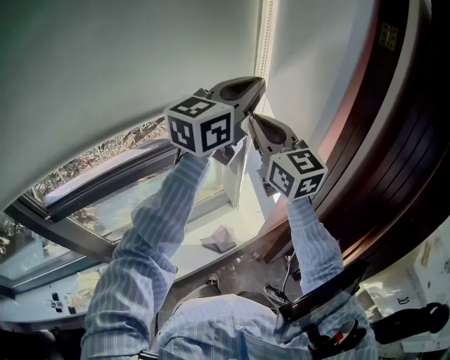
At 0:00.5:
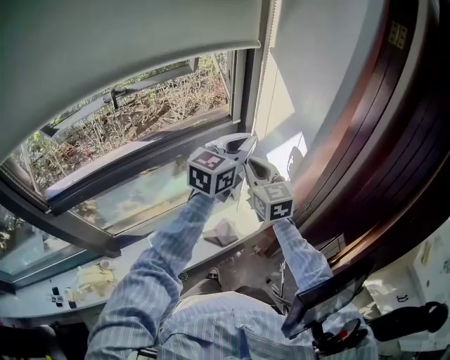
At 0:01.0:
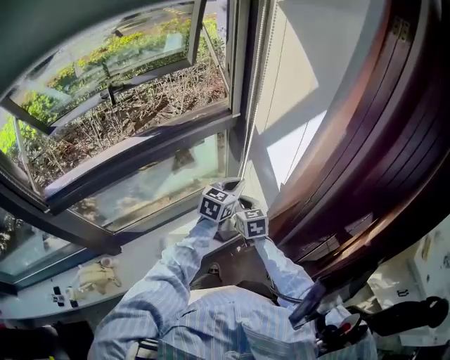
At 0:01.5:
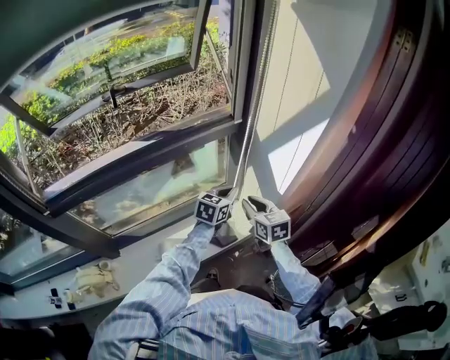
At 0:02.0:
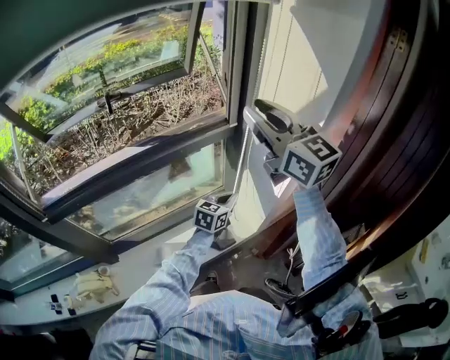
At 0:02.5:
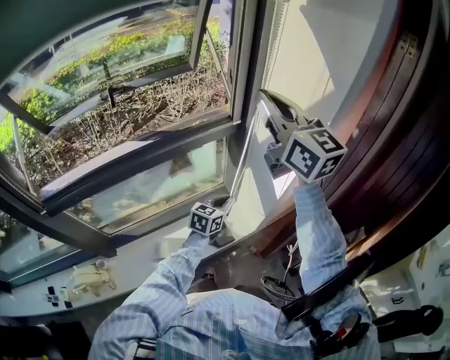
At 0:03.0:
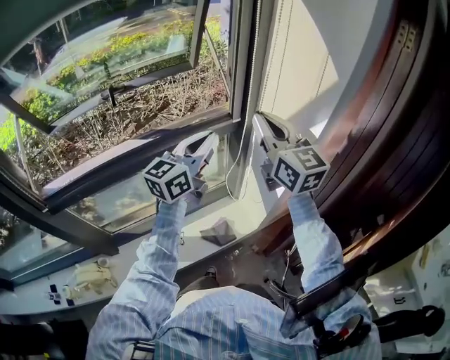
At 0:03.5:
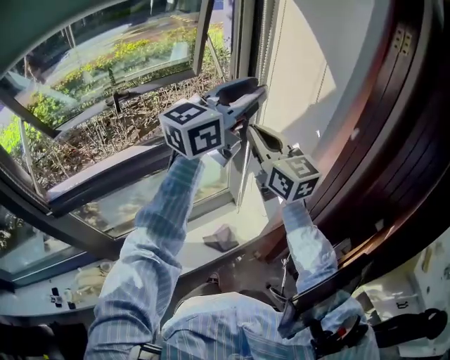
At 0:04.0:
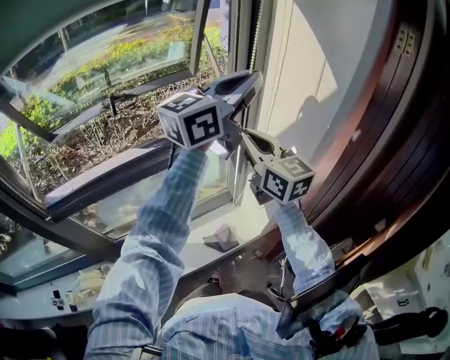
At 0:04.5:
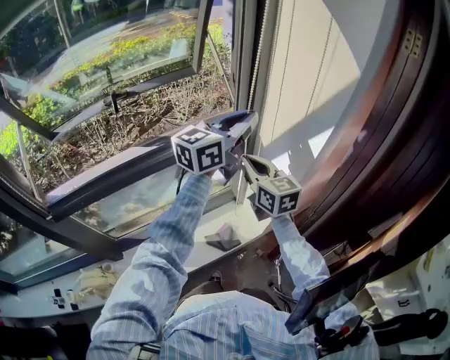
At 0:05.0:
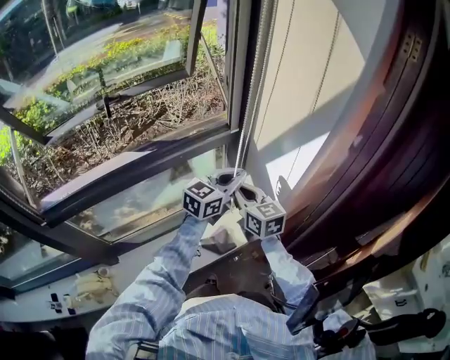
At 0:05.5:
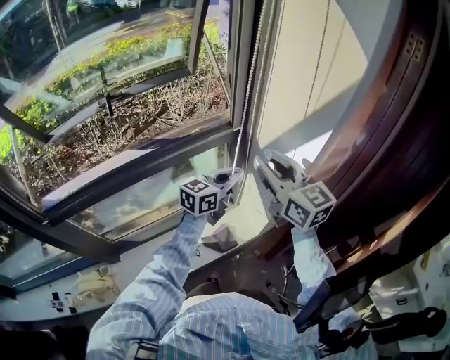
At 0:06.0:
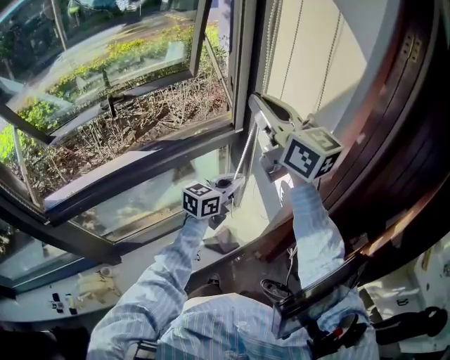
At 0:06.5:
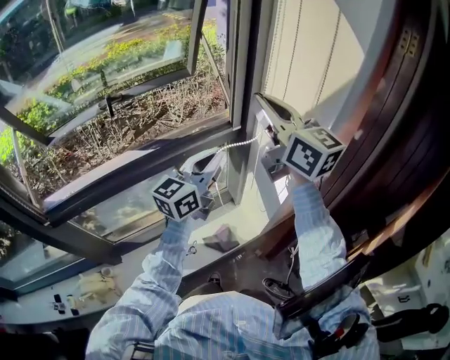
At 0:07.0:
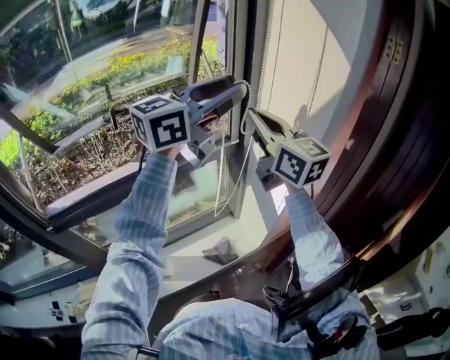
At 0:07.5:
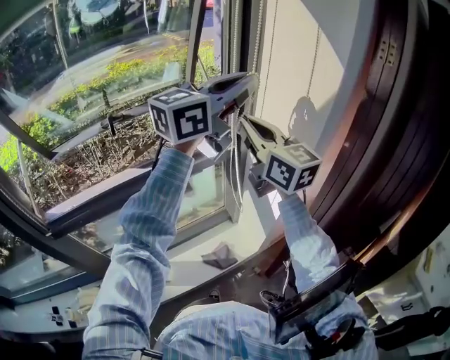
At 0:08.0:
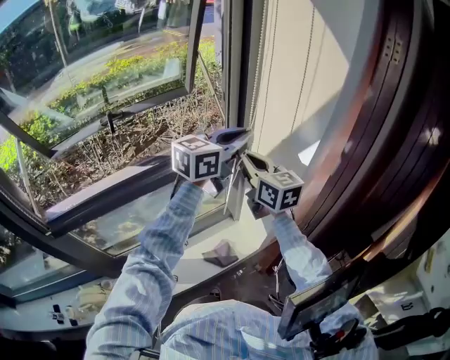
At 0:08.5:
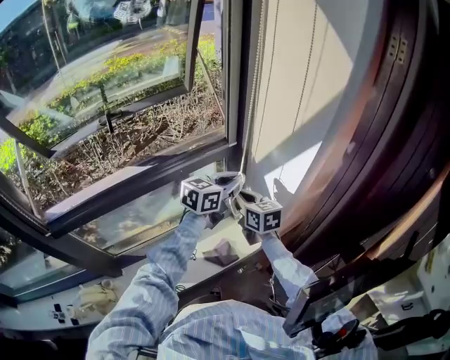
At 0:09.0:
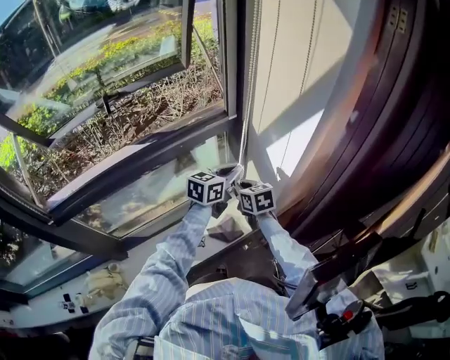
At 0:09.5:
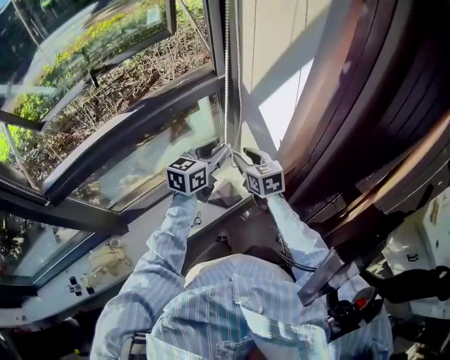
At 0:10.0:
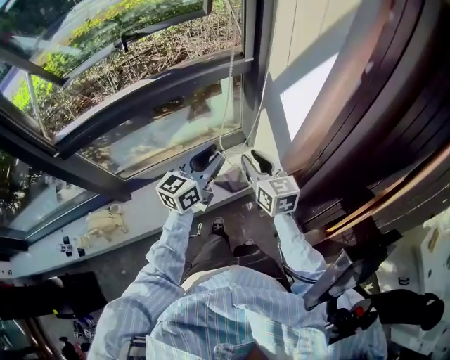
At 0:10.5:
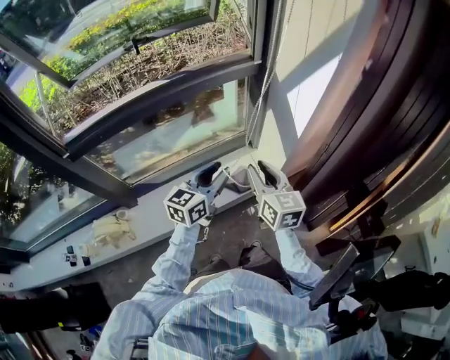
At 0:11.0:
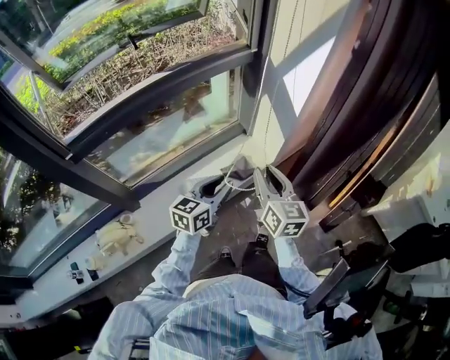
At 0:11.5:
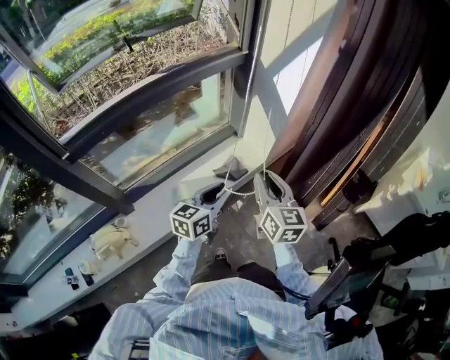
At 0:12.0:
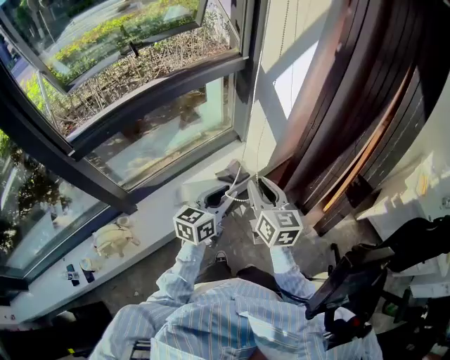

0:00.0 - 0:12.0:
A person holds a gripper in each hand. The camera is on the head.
0:00.0 - 0:02.0: The right gripper goes downward and returns, some 40 cm each way, and opens. The left gripper heads downward, covering roughly 50 cm, and tilts its fingers about 30 degrees downward.
0:02.0 - 0:04.0: The right gripper is displaced downward by approximately 5 cm, and closes its fingers; the left gripper goes roughly 50 cm upward, tips its fingers upward by about 40 degrees, and opens, then closes once more.
0:04.0 - 0:06.0: The right gripper moves about 20 cm downward and comes back, and opens, then closes again; the left gripper travels downward by some 35 cm, and rotates roughly 30 degrees.
0:06.0 - 0:08.0: The right gripper travels downward by roughly 15 cm. The left gripper goes some 20 cm upward, and opens and closes again.
0:08.0 - 0:10.0: Both grippers move downward and backward, some 30 cm. The right gripper opens up. The left gripper changes its angle by roughly 20 degrees, and opens its fingers.
0:10.0 - 0:12.0: Both grippers move backward, roughly 20 cm. The right gripper swivels about 20 degrees.

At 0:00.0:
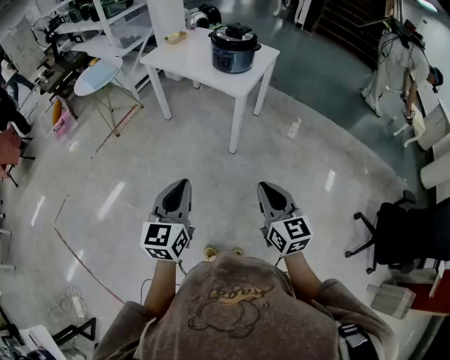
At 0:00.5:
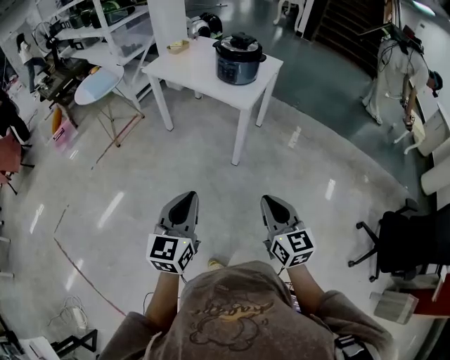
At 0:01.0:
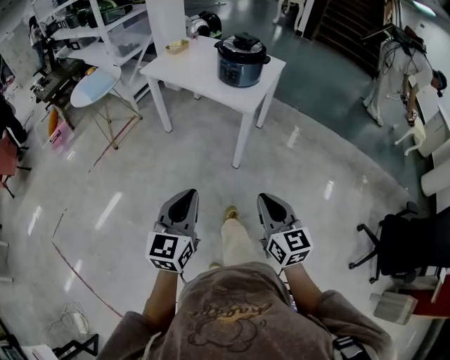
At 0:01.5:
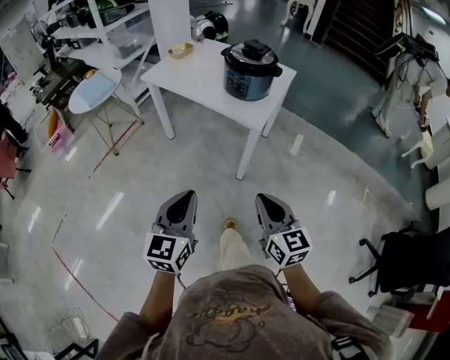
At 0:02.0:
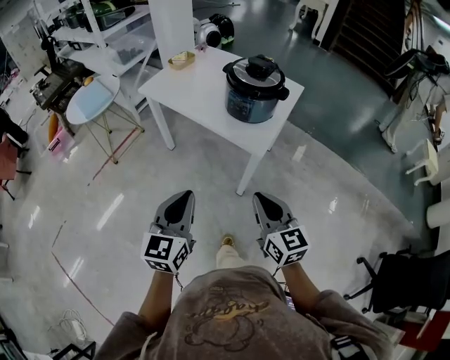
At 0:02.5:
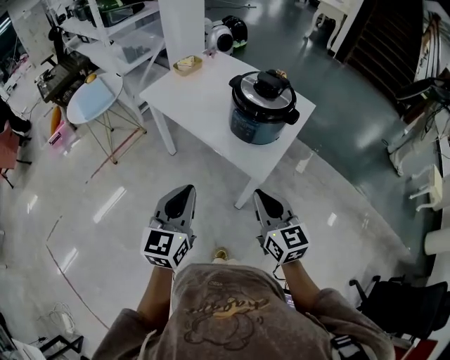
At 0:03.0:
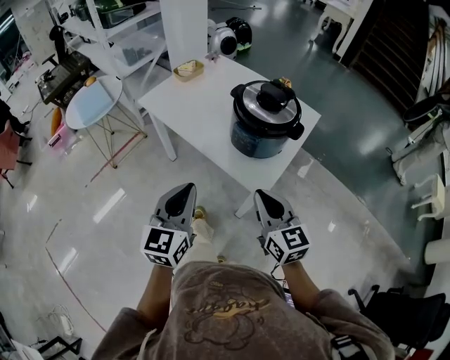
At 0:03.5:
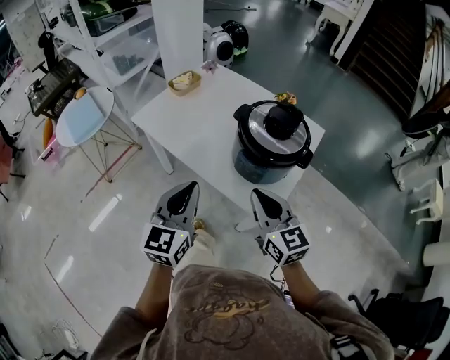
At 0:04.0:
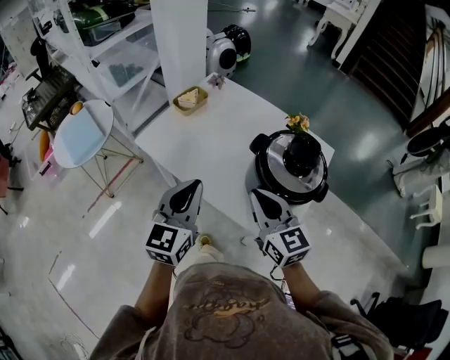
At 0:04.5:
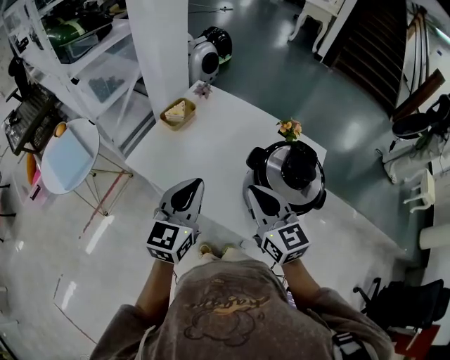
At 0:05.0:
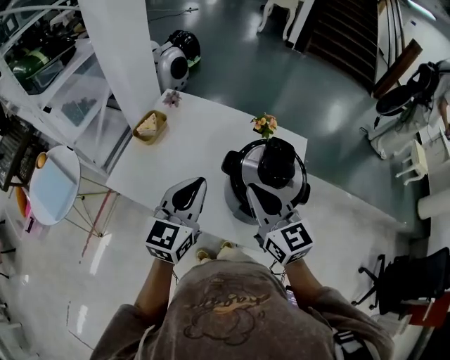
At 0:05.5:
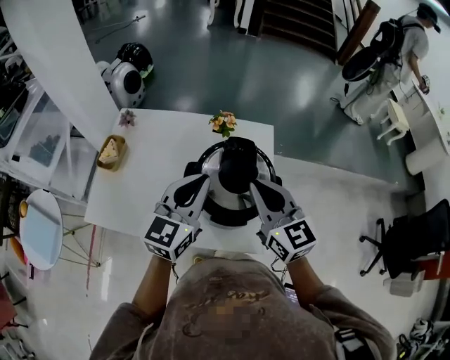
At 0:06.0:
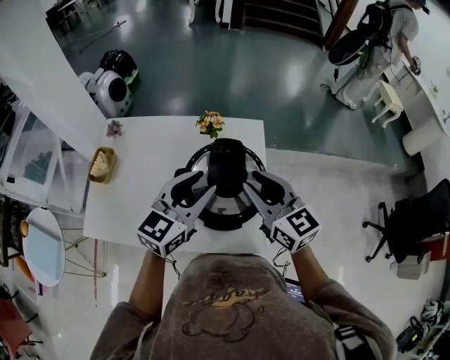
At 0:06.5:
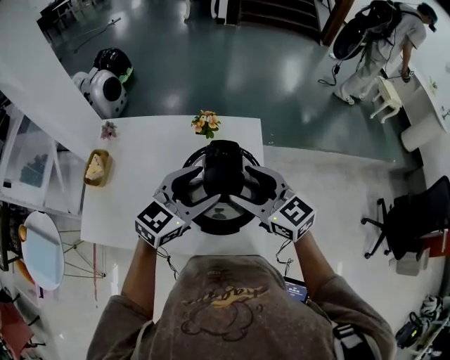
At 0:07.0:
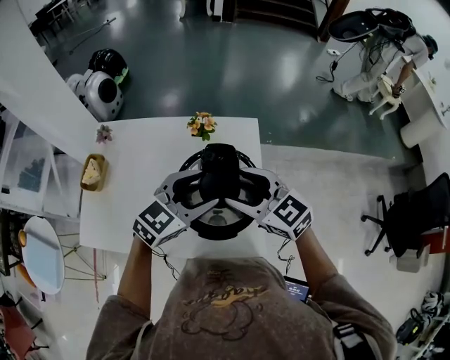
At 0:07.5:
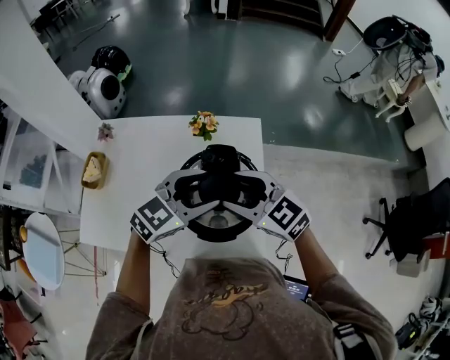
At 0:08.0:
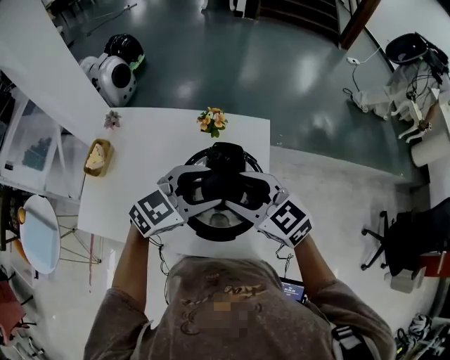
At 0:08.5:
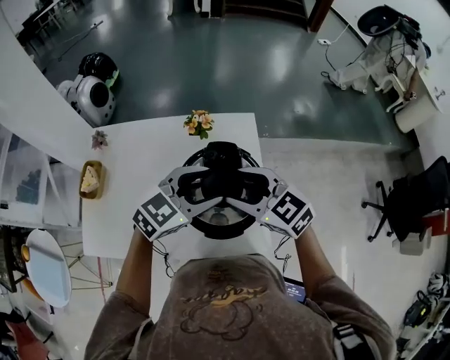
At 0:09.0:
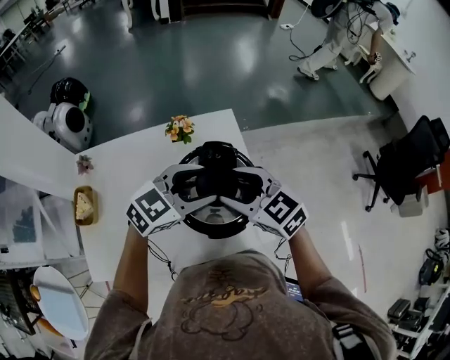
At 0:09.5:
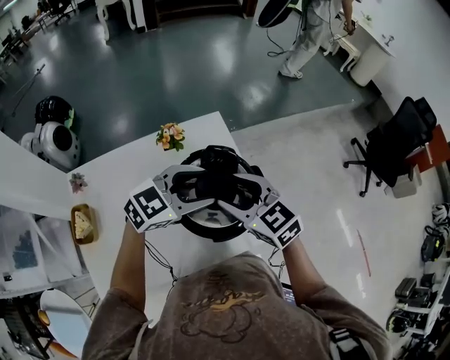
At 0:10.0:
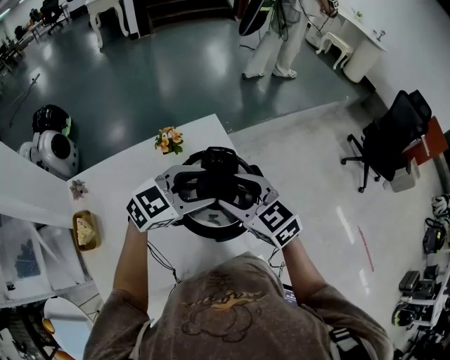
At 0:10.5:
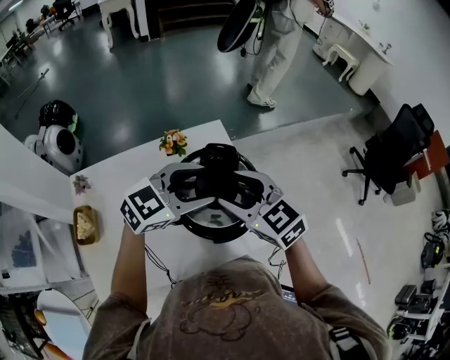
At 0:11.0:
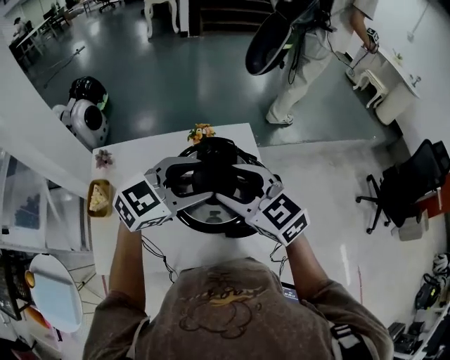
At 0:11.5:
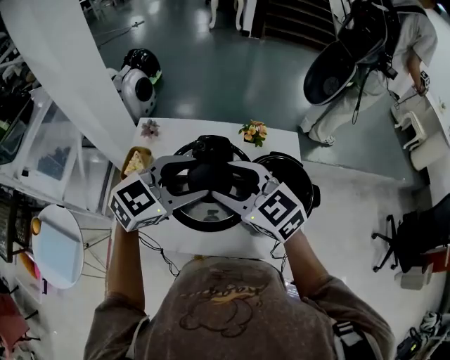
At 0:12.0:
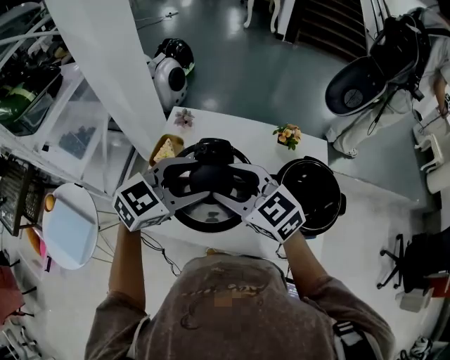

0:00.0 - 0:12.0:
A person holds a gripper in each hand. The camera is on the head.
0:00.0 - 0:02.0: Both grippers move forward, about 30 cm.
0:02.0 - 0:04.0: The pair of grippers is taken forward, roughly 40 cm.
0:04.0 - 0:06.0: The right gripper ends up roughly 20 cm from where it was, turns by about 20 degrees, and opens its fingers. Meanwhile the left gripper shifts by about 25 cm, rotates some 50 degrees, and opens.
0:06.0 - 0:08.0: The left gripper changes place by roughly 5 cm, changes its angle by roughly 30 degrees, and opens; the right gripper ends up approximately 5 cm from where it was, swivels roughly 30 degrees, and opens its fingers.
0:08.0 - 0:10.0: The left gripper swivels approximately 30 degrees. The right gripper rotates roughly 40 degrees.
0:10.0 - 0:12.0: The right gripper changes place by some 30 cm, and turns by roughly 40 degrees. The left gripper moves approximately 30 cm, and changes its angle by approximately 40 degrees.

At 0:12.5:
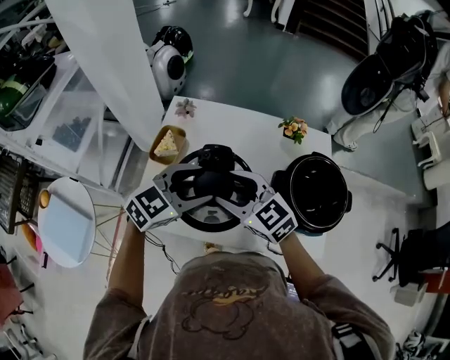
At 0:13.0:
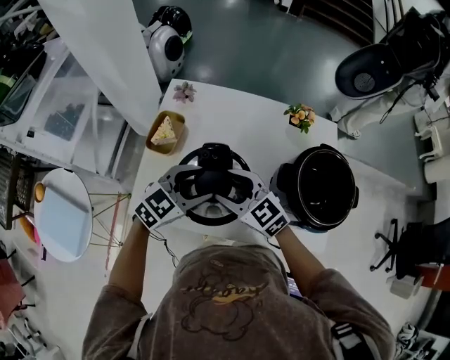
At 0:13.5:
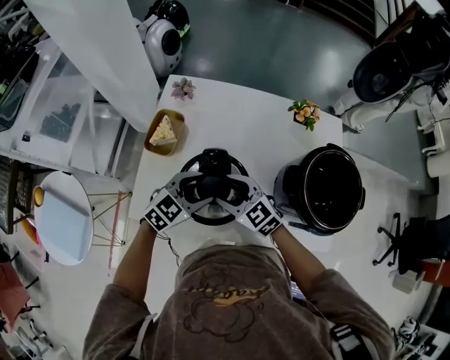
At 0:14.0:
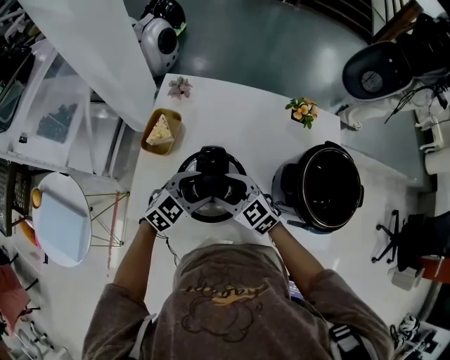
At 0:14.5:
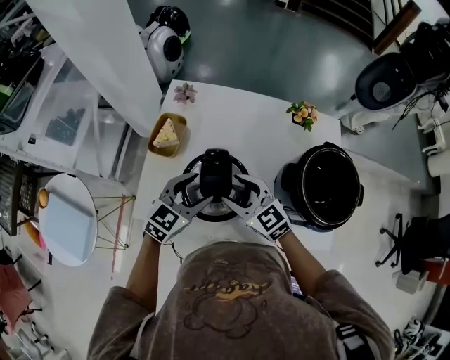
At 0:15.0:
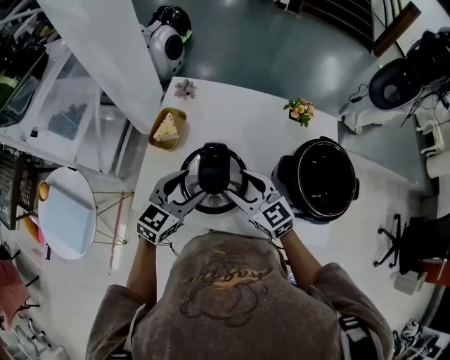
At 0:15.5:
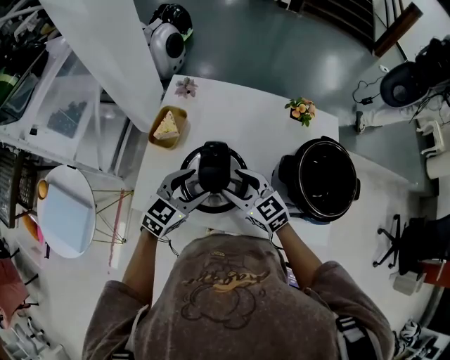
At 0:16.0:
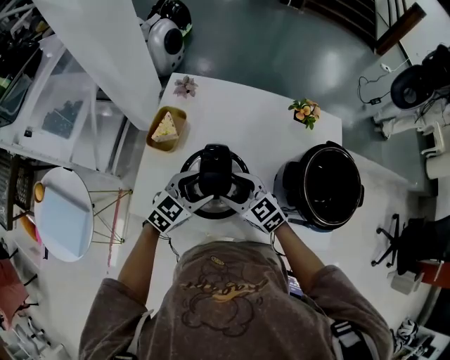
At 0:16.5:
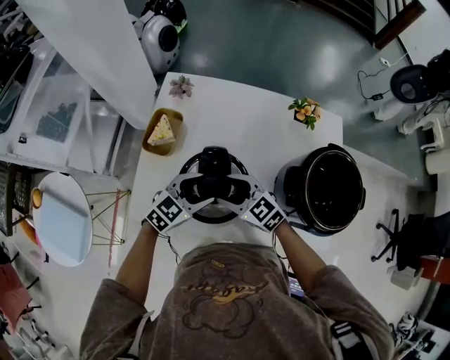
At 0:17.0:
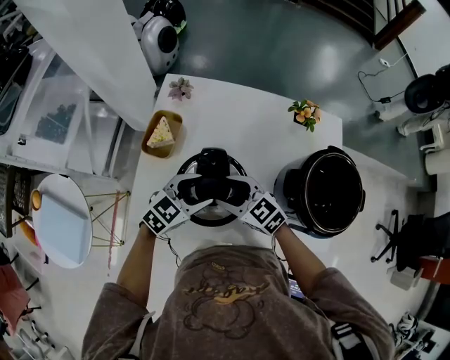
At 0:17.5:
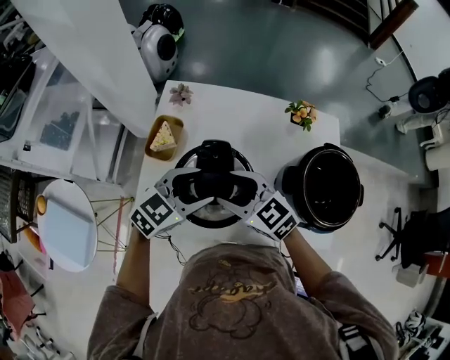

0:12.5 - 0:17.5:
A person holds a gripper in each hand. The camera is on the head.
0:12.5 - 0:15.0: The two grippers go roughly 10 cm downward. The left gripper swivels roughly 20 degrees.
0:15.0 - 0:17.5: The right gripper goes downward and returns, about 5 cm each way. Meanwhile the left gripper moves about 10 cm downward and comes back, and changes its angle by about 20 degrees.
